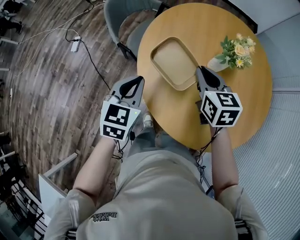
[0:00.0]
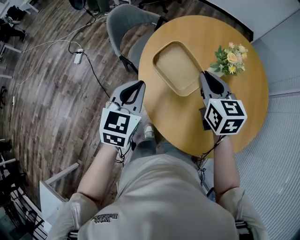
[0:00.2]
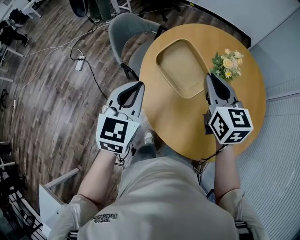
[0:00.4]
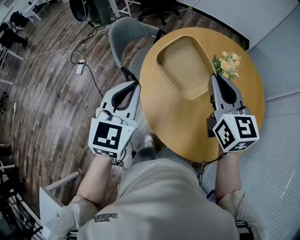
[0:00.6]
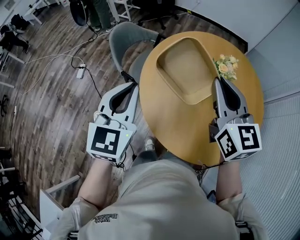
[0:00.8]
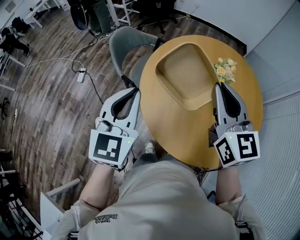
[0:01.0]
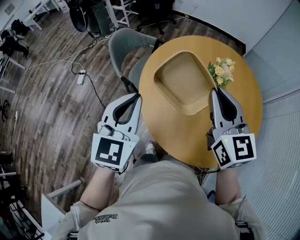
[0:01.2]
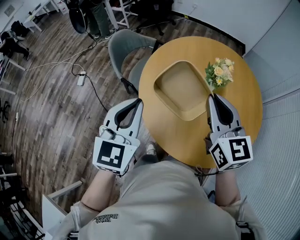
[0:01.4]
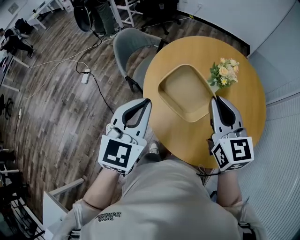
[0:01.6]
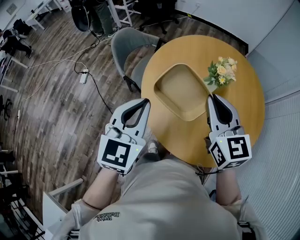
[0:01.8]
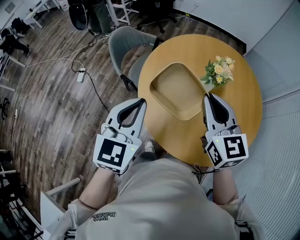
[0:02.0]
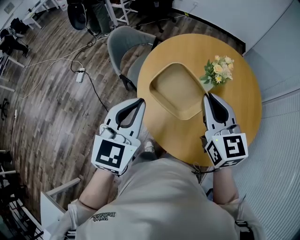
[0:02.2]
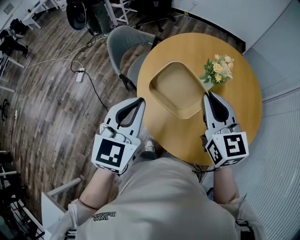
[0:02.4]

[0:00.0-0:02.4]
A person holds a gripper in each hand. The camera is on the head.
0:00.0 to 0:01.2: The grippers both shift upward by some 20 cm. The right gripper turns by roughly 30 degrees. Meanwhile the left gripper changes its angle by approximately 20 degrees.
0:01.2 to 0:02.4: The grippers make only small movements.

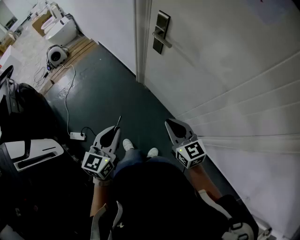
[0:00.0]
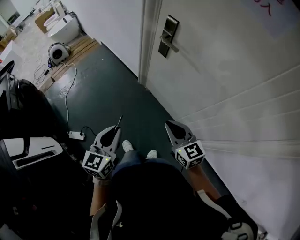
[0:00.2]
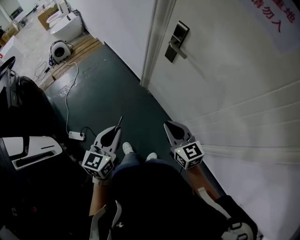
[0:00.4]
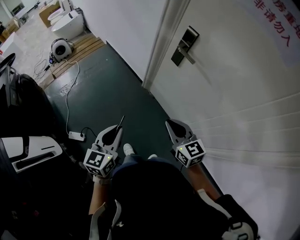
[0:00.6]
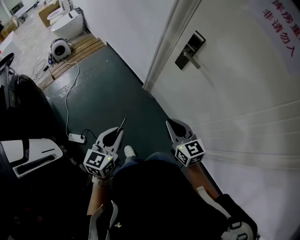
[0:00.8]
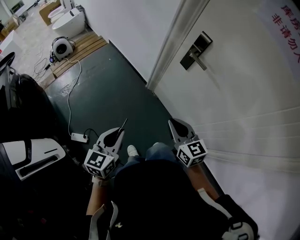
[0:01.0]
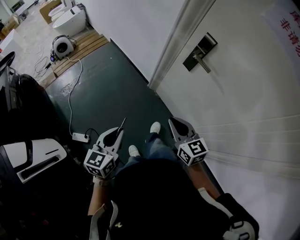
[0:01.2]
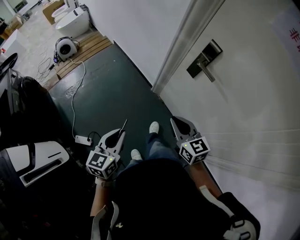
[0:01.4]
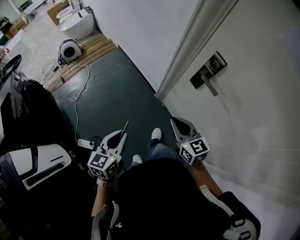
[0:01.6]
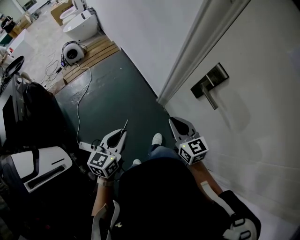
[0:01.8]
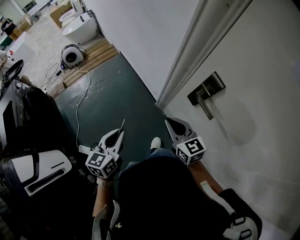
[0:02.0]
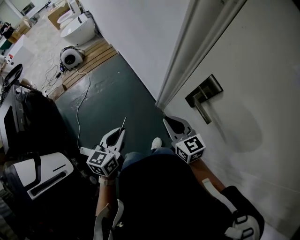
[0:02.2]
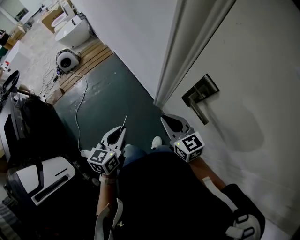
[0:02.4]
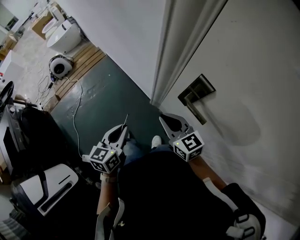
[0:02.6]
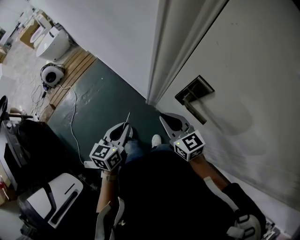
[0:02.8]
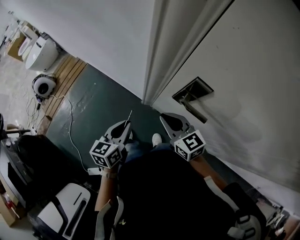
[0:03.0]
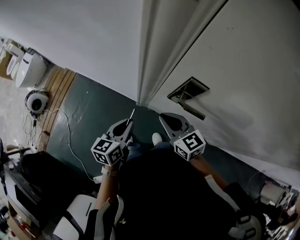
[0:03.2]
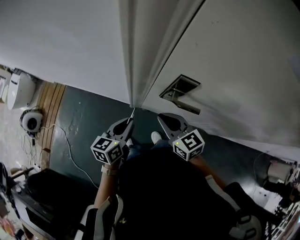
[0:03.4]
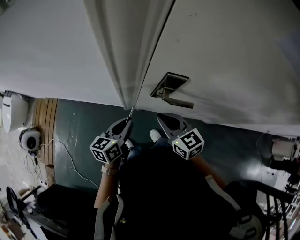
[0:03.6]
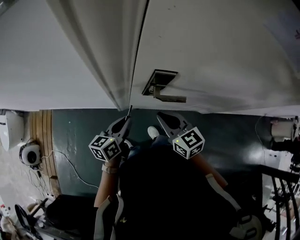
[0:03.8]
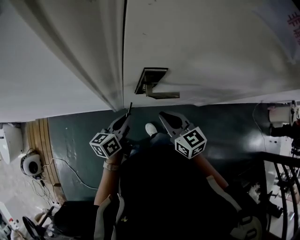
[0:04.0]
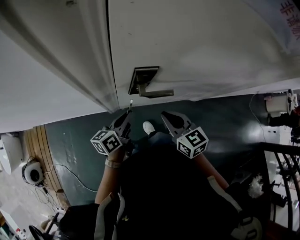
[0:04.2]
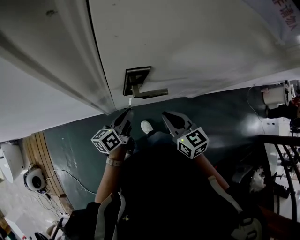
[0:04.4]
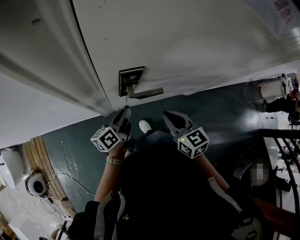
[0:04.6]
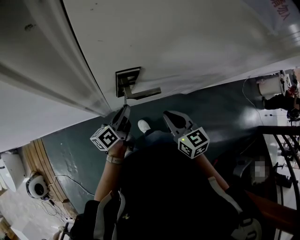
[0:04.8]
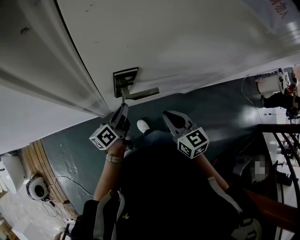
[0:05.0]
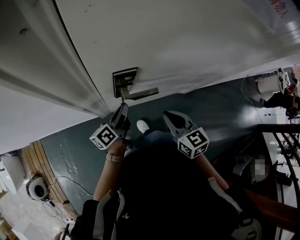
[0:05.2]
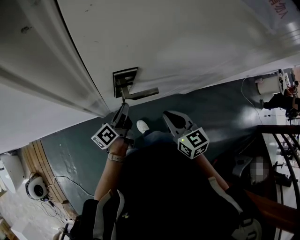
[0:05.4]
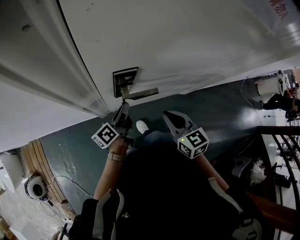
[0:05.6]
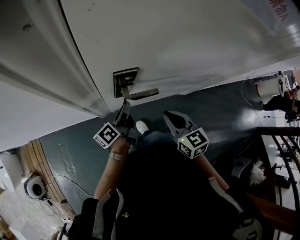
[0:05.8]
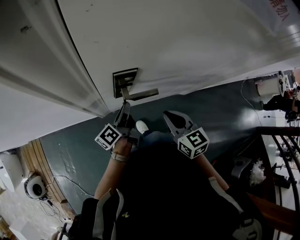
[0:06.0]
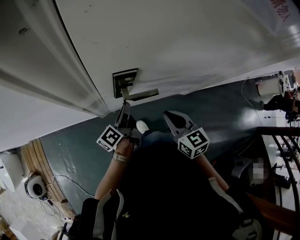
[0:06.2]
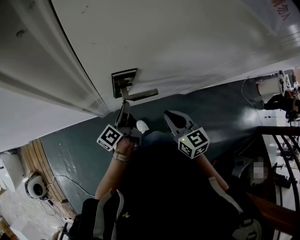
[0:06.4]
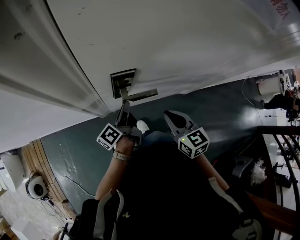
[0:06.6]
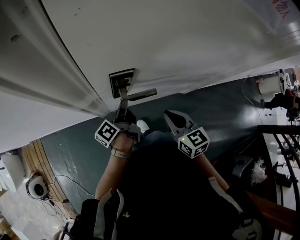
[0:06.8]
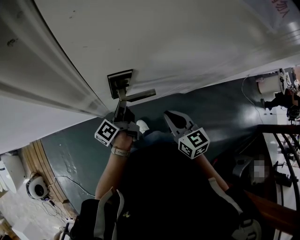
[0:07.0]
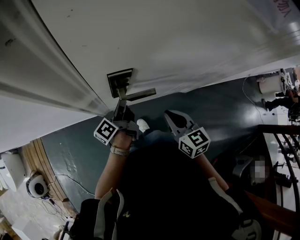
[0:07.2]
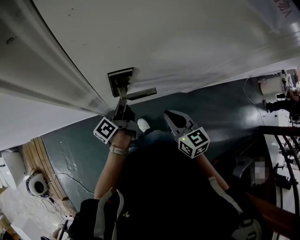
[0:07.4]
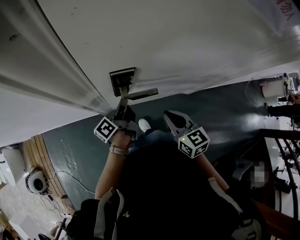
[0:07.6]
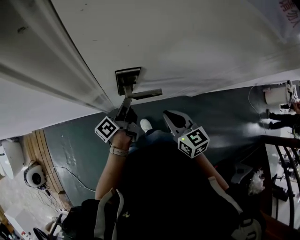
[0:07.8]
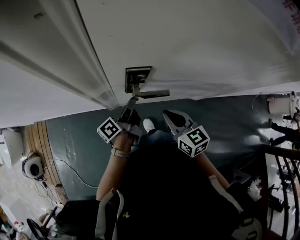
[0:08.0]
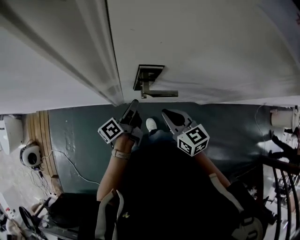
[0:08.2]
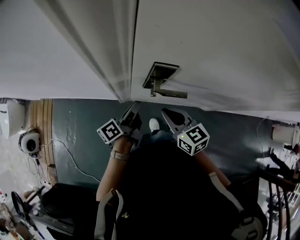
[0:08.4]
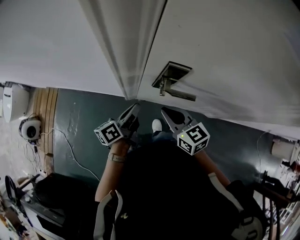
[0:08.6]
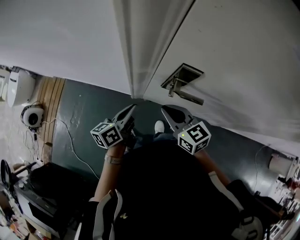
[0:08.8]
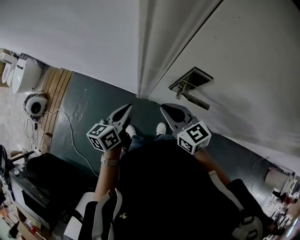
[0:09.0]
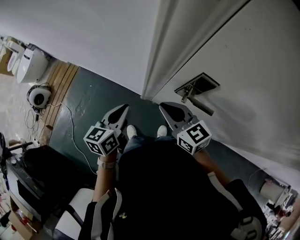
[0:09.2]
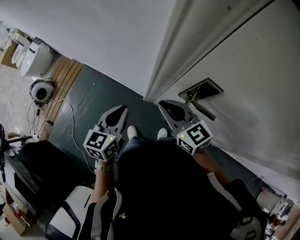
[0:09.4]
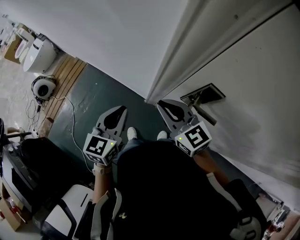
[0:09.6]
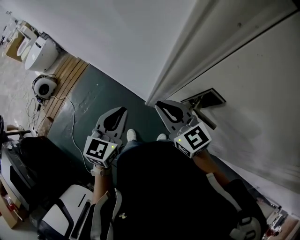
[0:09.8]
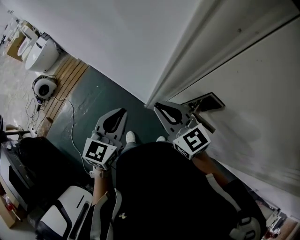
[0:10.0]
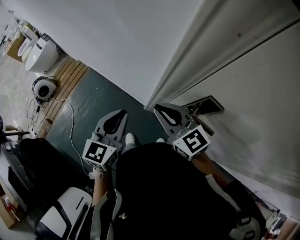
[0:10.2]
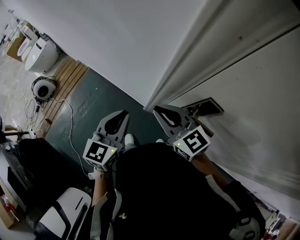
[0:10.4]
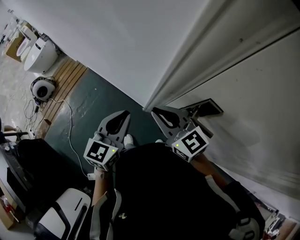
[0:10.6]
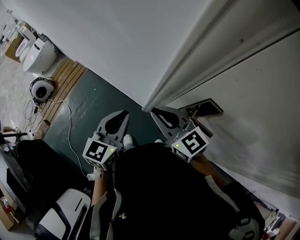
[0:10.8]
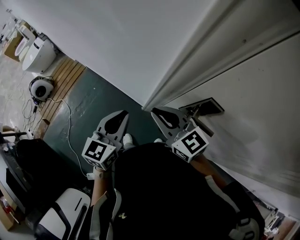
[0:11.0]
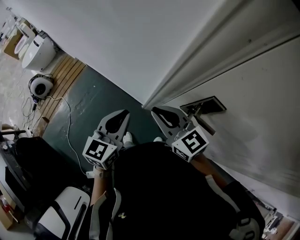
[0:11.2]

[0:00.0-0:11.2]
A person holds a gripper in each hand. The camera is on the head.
0:00.0 to 0:01.6: Both grippers move forward and to the left, some 25 cm.
0:01.6 to 0:03.2: The left gripper shifts by some 35 cm, and swivels roughly 30 degrees. Meanwhile the right gripper moves roughly 25 cm.
0:03.2 to 0:04.8: The right gripper ends up approximately 15 cm from where it was, and swivels roughly 50 degrees. The left gripper shifts by approximately 20 cm, and rotates roughly 40 degrees.
0:04.8 to 0:06.4: The grippers move only a little.
0:06.4 to 0:08.0: The grippers make only small movements.
0:08.0 to 0:09.6: The left gripper changes place by some 30 cm, and rotates around the line of its fingers by roughly 70 degrees, clockwise from behind; the right gripper shifts by about 25 cm, and swivels some 50 degrees.
0:09.6 to 0:11.2: The grippers stay close to where they were, moving slightly.

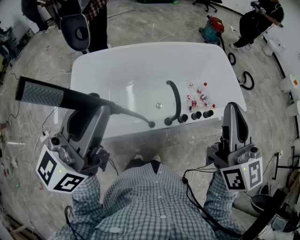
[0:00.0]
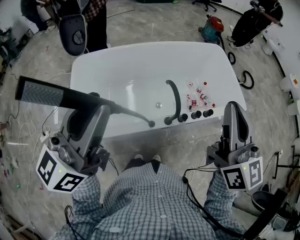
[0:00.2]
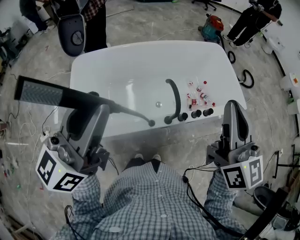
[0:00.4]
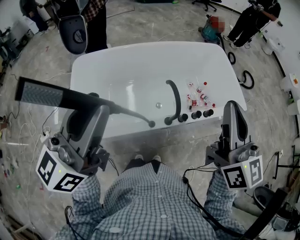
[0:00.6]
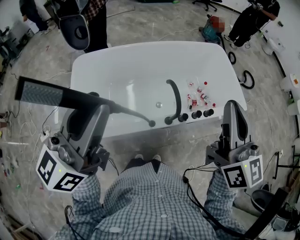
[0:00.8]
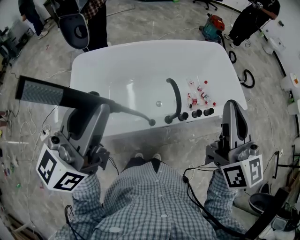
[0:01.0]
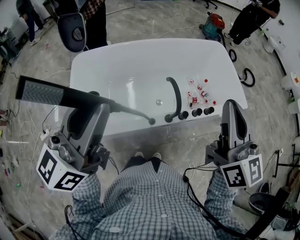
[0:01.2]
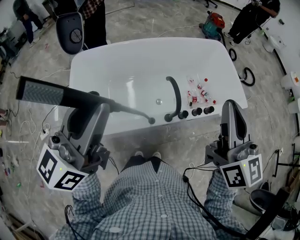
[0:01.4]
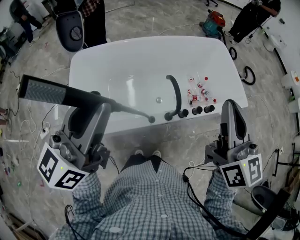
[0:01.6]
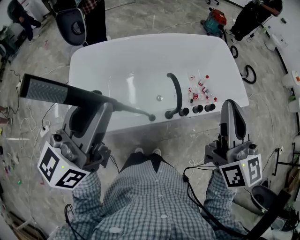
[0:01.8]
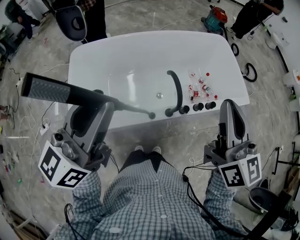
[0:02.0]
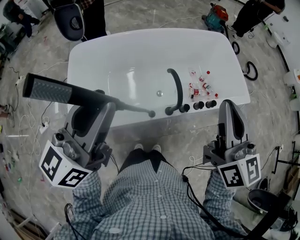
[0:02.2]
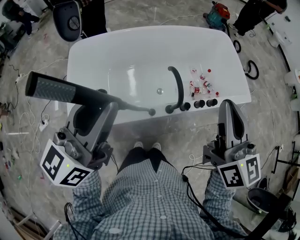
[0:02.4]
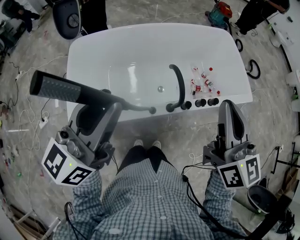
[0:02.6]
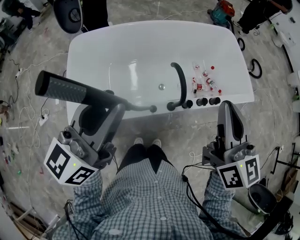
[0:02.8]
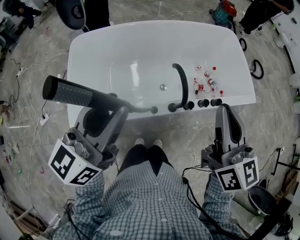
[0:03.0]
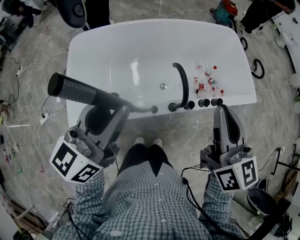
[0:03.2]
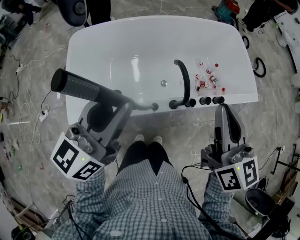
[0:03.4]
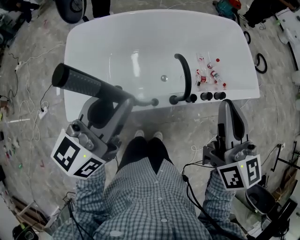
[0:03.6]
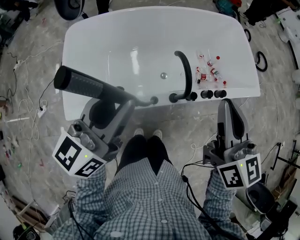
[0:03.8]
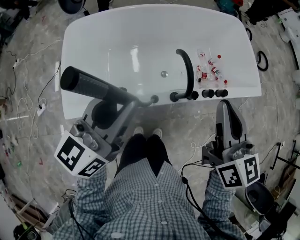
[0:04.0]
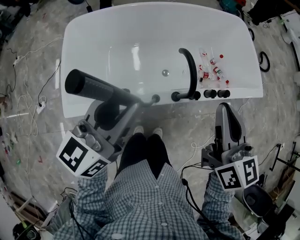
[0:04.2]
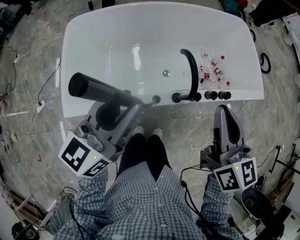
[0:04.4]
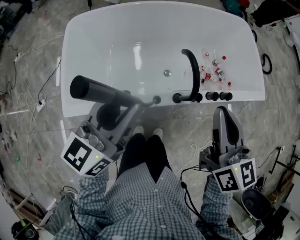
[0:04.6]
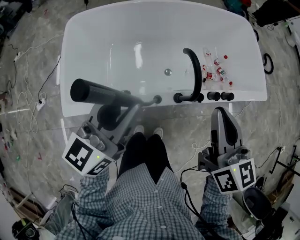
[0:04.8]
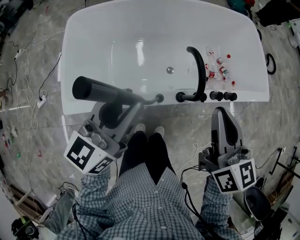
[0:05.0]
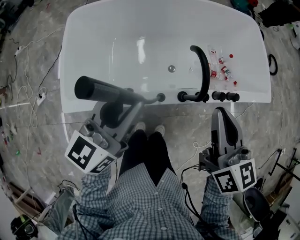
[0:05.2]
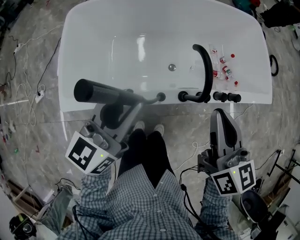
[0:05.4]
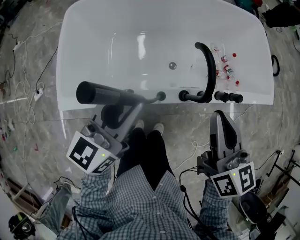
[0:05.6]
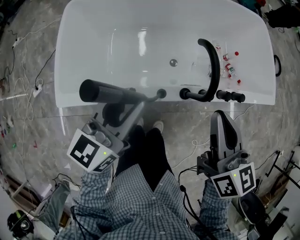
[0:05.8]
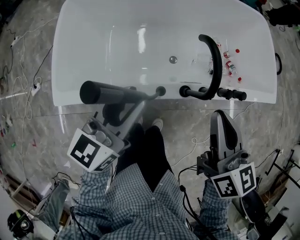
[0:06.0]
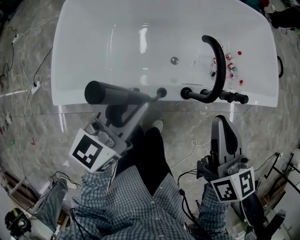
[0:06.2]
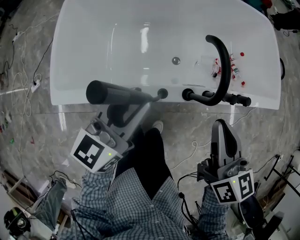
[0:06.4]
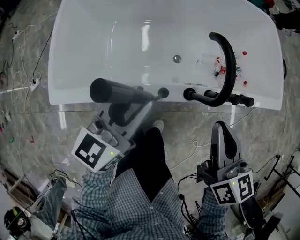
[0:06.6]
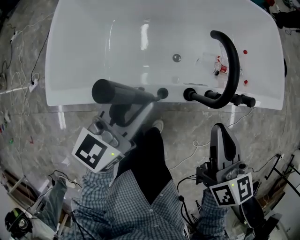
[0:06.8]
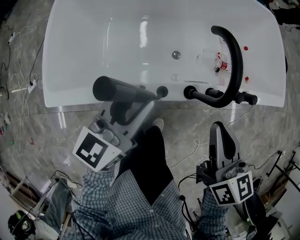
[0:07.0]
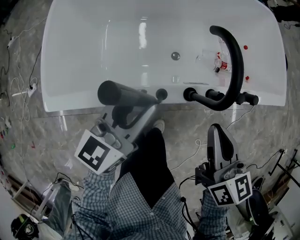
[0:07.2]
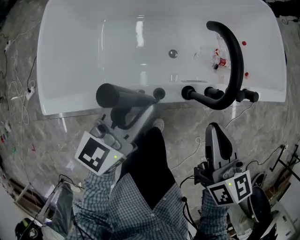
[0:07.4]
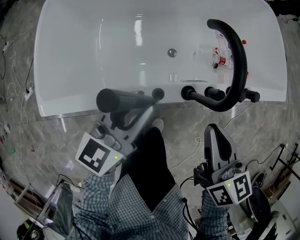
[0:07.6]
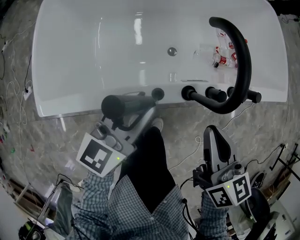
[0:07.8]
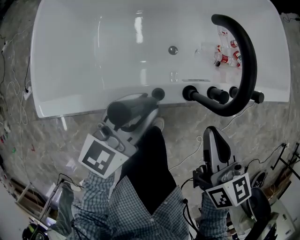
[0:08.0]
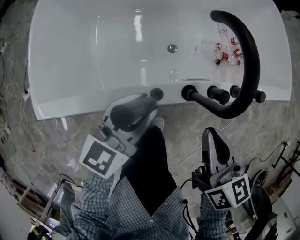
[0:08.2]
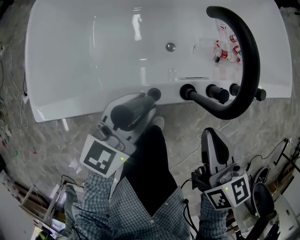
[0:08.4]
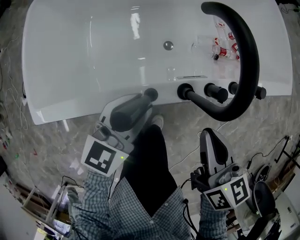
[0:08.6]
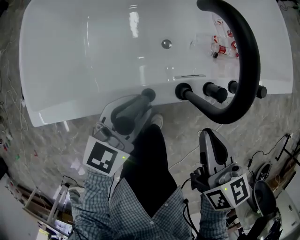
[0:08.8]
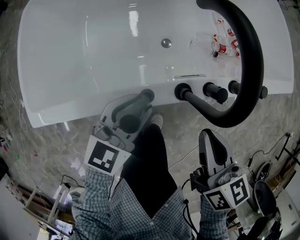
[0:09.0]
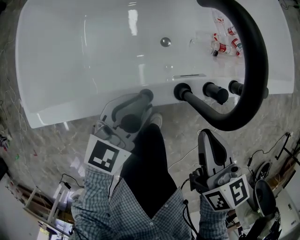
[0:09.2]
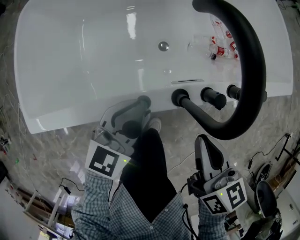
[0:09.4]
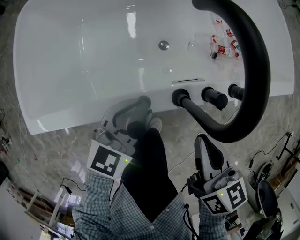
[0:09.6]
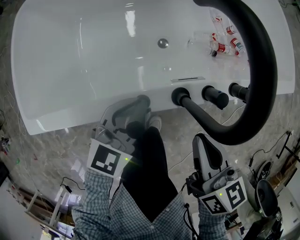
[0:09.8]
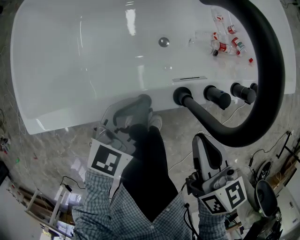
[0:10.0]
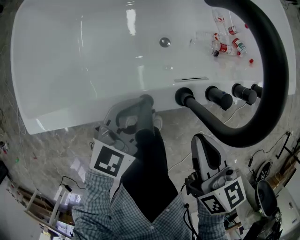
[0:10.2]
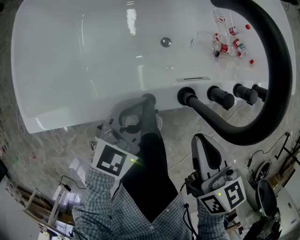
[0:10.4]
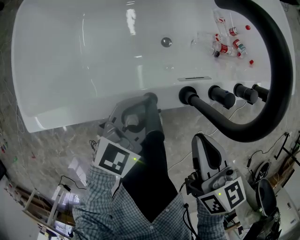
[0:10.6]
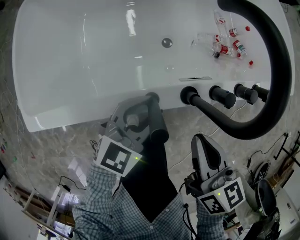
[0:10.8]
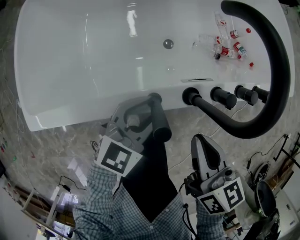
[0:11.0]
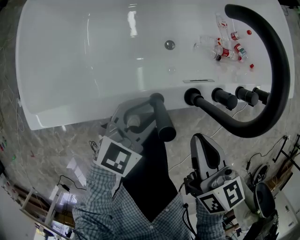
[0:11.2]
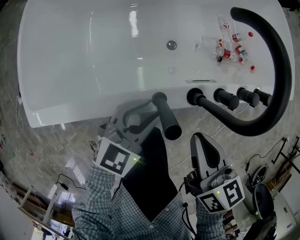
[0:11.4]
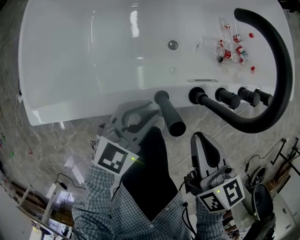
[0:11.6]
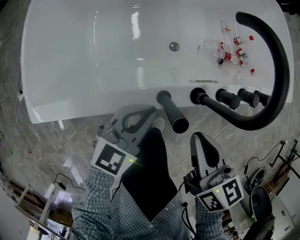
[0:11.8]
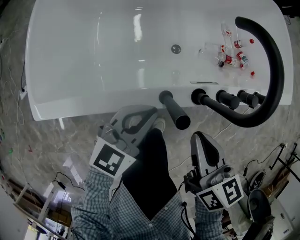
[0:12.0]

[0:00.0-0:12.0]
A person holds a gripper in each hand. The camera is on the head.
0:00.0 to 0:01.6: The grippers move only a little.
0:01.6 to 0:03.0: Both grippers travel together downward, some 10 cm.
0:03.0 to 0:04.4: The grippers both shift downward by roughly 10 cm.
0:04.4 to 0:06.0: The grippers both shift downward by approximately 15 cm.
0:06.0 to 0:07.6: Both grippers move downward, approximately 15 cm.
0:07.6 to 0:09.0: The right gripper goes roughly 5 cm downward. Meanwhile the left gripper is displaced downward by approximately 10 cm, and swivels about 20 degrees.
0:09.0 to 0:10.4: The grippers make only small movements.
0:10.4 to 0:12.0: The left gripper moves about 5 cm, and closes; the right gripper shifts by about 5 cm.
